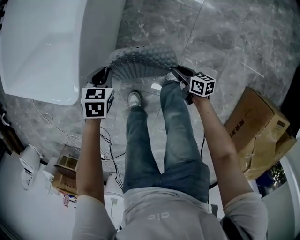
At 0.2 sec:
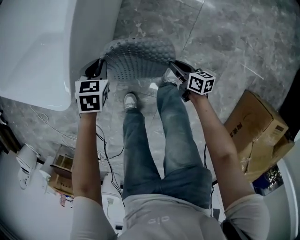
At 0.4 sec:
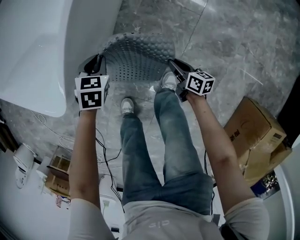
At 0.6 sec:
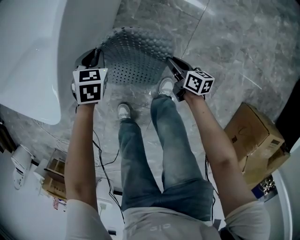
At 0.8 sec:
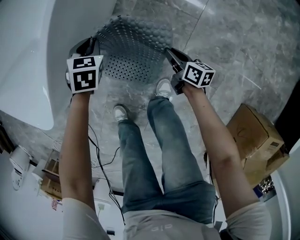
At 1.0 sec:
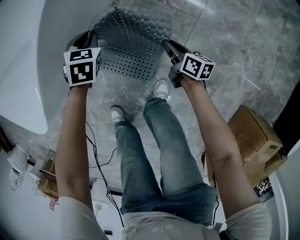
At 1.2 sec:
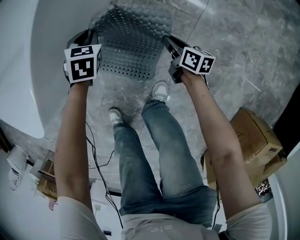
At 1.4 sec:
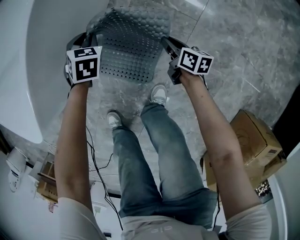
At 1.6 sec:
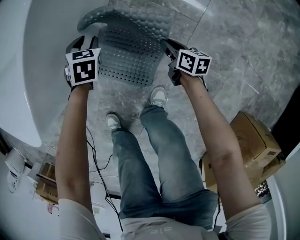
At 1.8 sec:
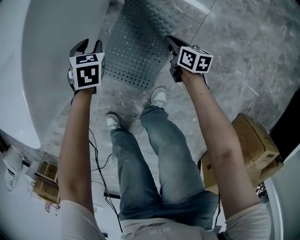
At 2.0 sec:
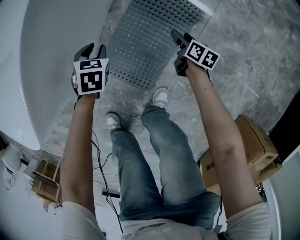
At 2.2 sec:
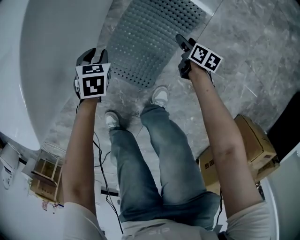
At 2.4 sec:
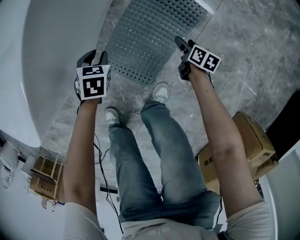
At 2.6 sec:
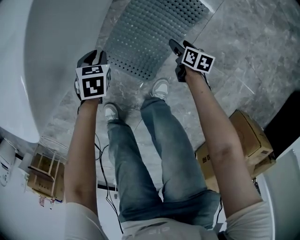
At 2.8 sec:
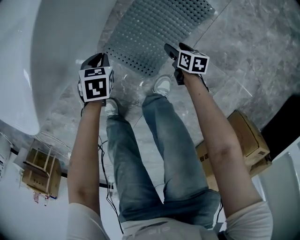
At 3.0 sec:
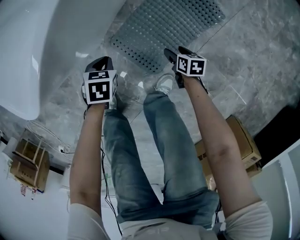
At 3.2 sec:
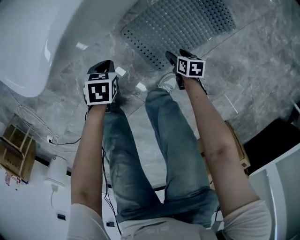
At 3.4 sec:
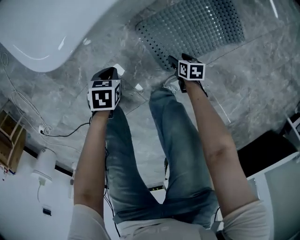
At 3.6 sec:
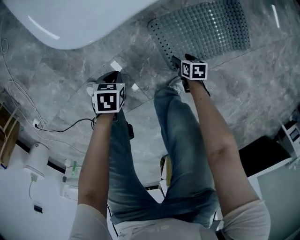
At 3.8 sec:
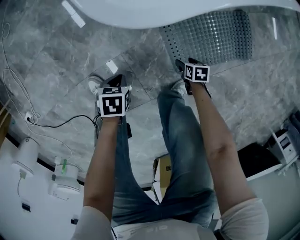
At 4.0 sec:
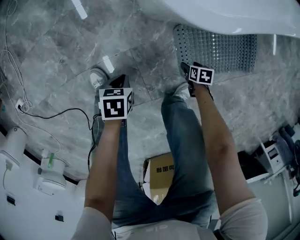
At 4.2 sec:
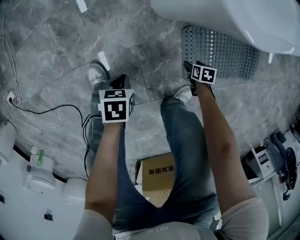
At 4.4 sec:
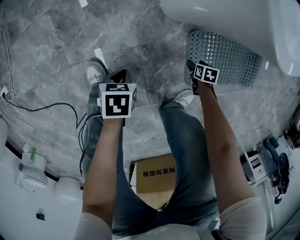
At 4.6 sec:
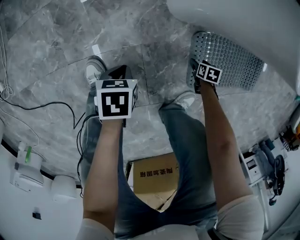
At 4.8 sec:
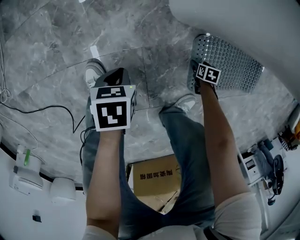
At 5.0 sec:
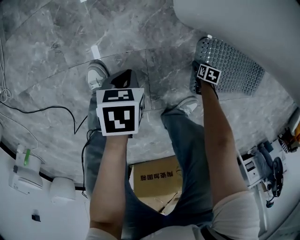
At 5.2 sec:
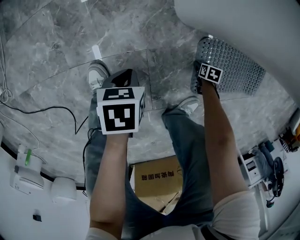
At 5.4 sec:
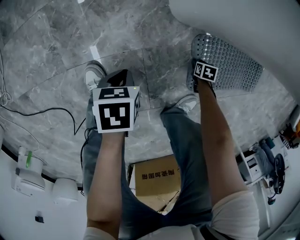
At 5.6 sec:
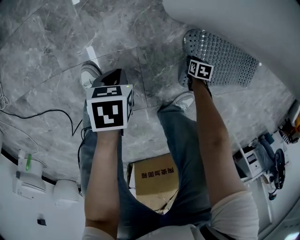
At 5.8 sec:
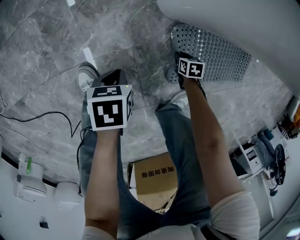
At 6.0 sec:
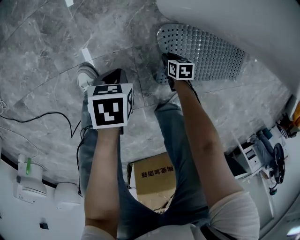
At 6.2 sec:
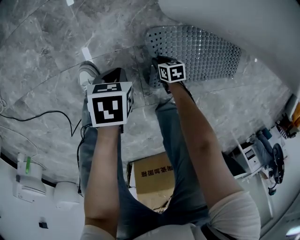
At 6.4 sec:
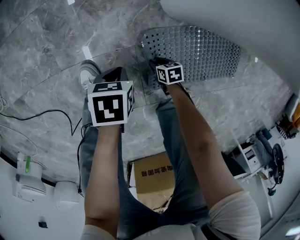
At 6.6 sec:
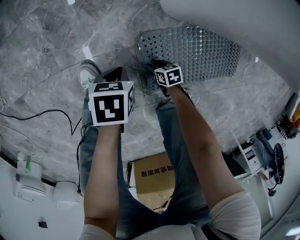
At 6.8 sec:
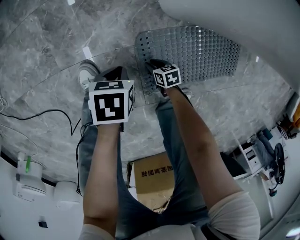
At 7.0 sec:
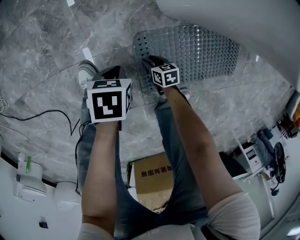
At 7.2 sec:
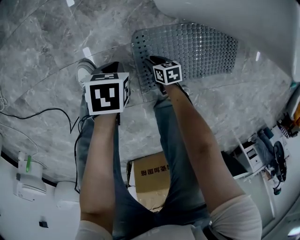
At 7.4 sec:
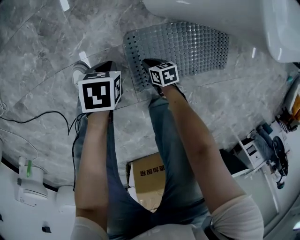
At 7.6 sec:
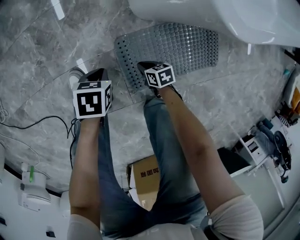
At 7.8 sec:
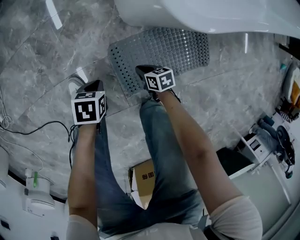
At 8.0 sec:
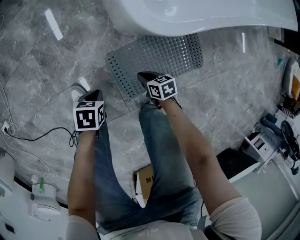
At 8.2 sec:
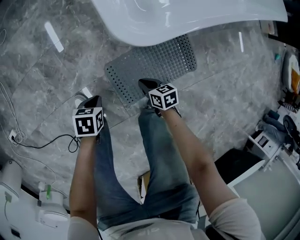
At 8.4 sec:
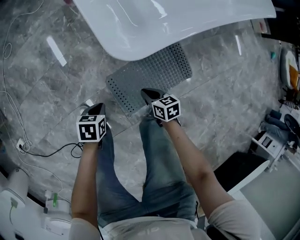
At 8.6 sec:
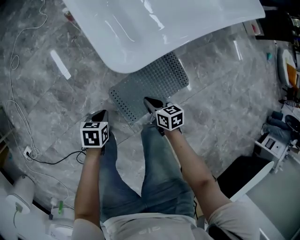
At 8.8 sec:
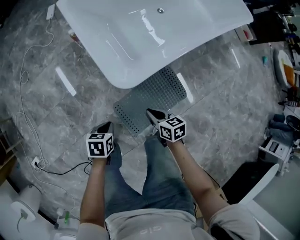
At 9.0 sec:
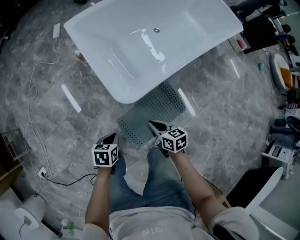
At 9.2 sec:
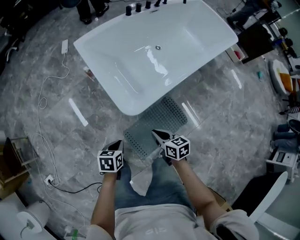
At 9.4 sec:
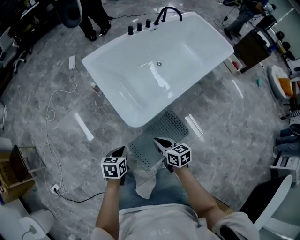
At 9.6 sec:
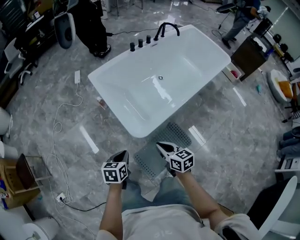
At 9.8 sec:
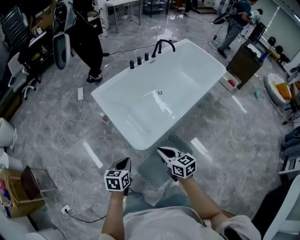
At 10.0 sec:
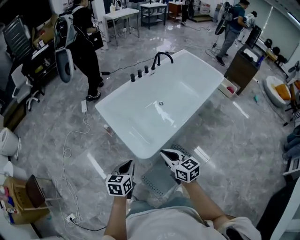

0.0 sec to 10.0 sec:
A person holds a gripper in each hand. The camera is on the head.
0.0 sec to 1.4 sec: The right gripper moves forward, downward and to the right, some 30 cm. Meanwhile the left gripper shifts roughly 30 cm downward, forward and to the right.
1.4 sec to 2.8 sec: The right gripper goes some 15 cm downward, to the left and backward, changes its angle by approximately 30 degrees, and opens its fingers. The left gripper is displaced backward and to the left by approximately 15 cm, and turns by approximately 20 degrees.
2.8 sec to 4.2 sec: The right gripper ends up about 35 cm from where it was, and rotates around the line of its fingers by some 40 degrees, counterclockwise from behind. Meanwhile the left gripper moves roughly 50 cm, and rolls counterclockwise, seen from behind, by approximately 50 degrees.
4.2 sec to 5.8 sec: The left gripper changes place by some 5 cm; the right gripper moves approximately 10 cm, and closes its fingers.
5.8 sec to 7.2 sec: The right gripper ends up about 15 cm from where it was, and turns by approximately 20 degrees.
7.2 sec to 8.6 sec: The right gripper goes roughly 50 cm upward, and turns by about 30 degrees; the left gripper goes some 30 cm upward, and rotates about 20 degrees.
8.6 sec to 10.0 sec: The grippers both shift upward by some 50 cm. The left gripper changes its angle by approximately 30 degrees, while the right gripper rotates approximately 40 degrees.

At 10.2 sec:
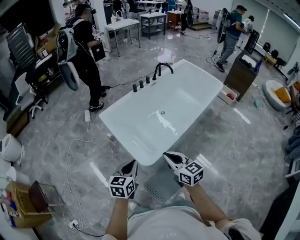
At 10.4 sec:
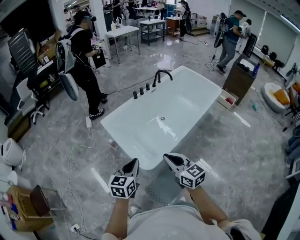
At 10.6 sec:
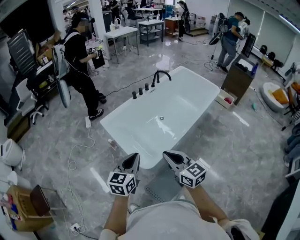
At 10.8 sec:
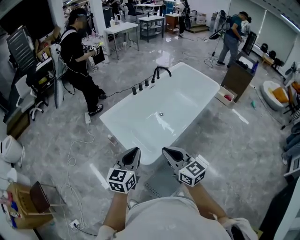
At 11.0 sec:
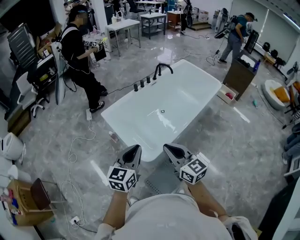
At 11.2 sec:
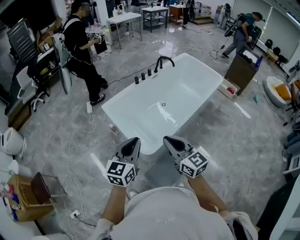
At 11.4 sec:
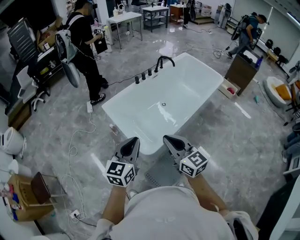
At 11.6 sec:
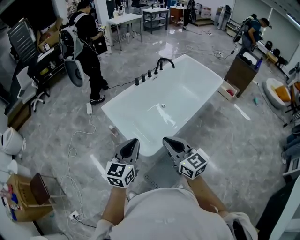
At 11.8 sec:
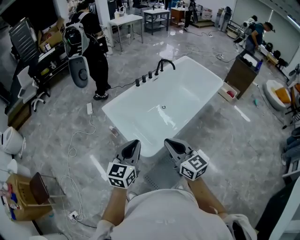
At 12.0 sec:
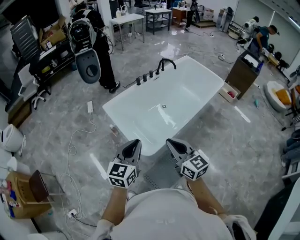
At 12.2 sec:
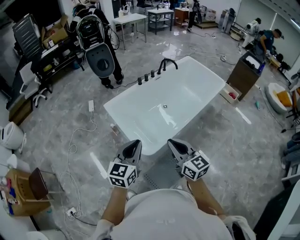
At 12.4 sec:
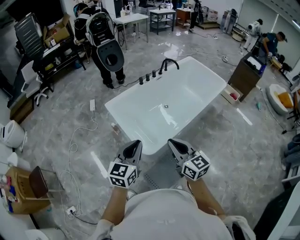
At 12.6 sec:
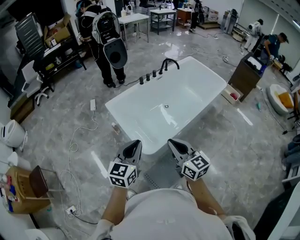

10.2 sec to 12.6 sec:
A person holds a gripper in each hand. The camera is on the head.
10.2 sec to 11.4 sec: The two grippers go roughly 10 cm upward.
11.4 sec to 12.6 sec: The grippers move only a little.

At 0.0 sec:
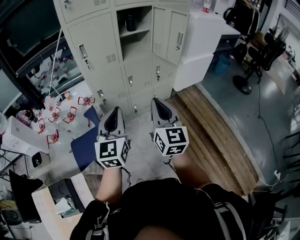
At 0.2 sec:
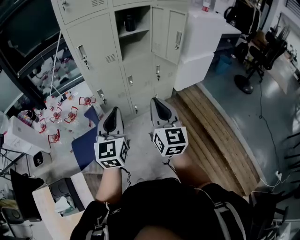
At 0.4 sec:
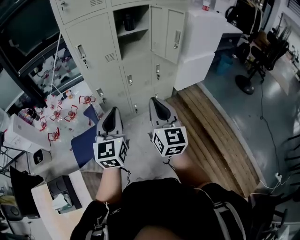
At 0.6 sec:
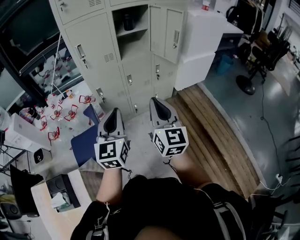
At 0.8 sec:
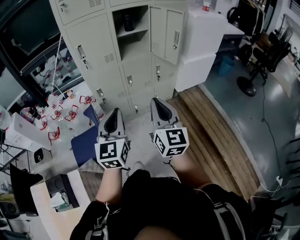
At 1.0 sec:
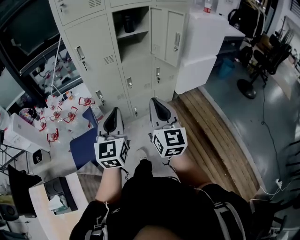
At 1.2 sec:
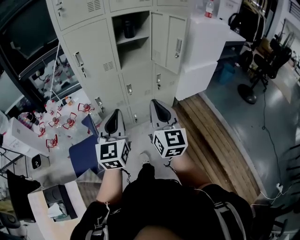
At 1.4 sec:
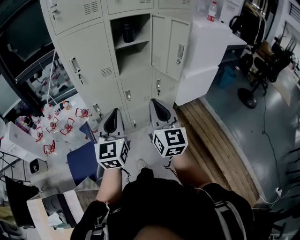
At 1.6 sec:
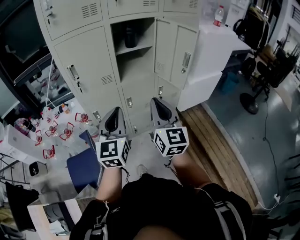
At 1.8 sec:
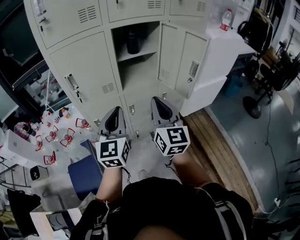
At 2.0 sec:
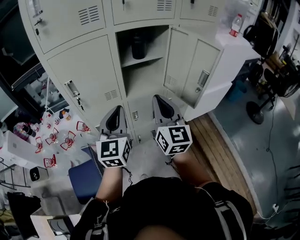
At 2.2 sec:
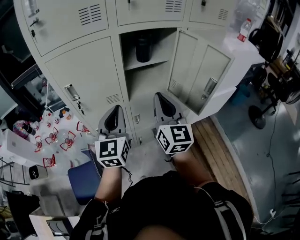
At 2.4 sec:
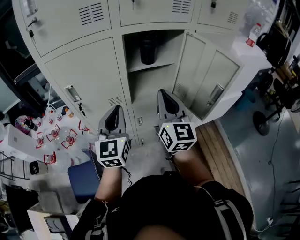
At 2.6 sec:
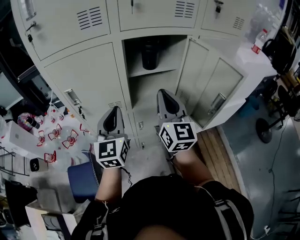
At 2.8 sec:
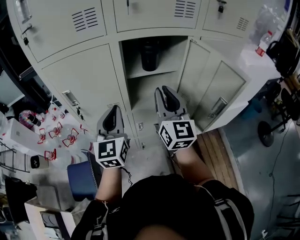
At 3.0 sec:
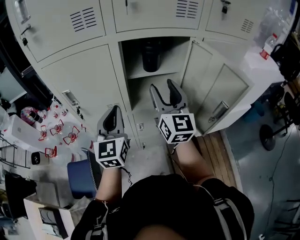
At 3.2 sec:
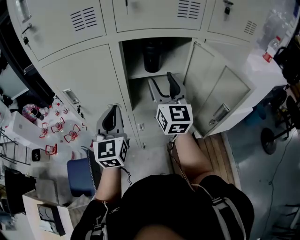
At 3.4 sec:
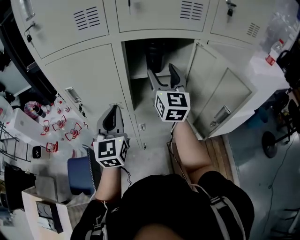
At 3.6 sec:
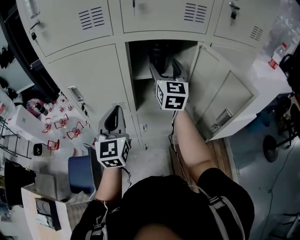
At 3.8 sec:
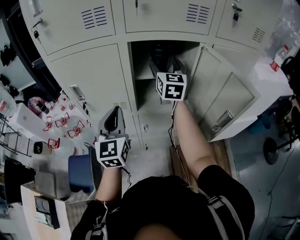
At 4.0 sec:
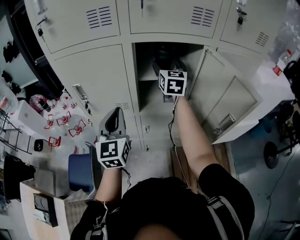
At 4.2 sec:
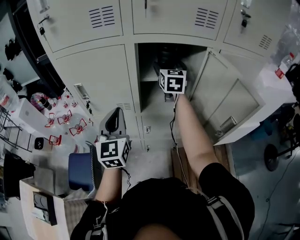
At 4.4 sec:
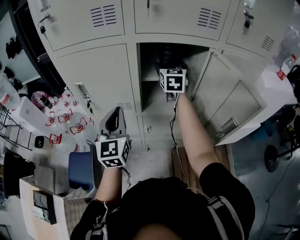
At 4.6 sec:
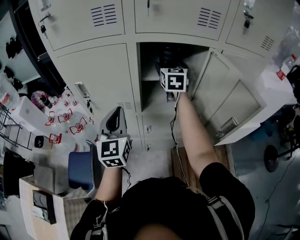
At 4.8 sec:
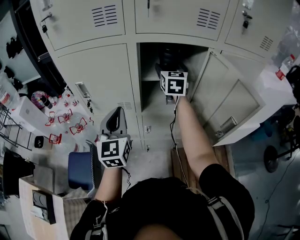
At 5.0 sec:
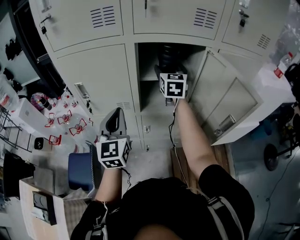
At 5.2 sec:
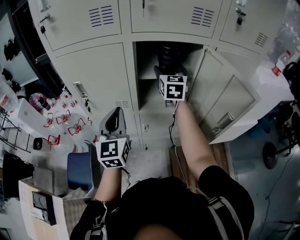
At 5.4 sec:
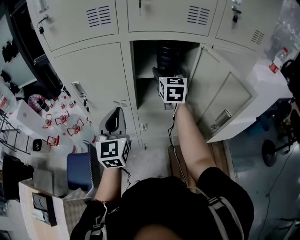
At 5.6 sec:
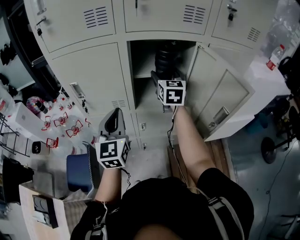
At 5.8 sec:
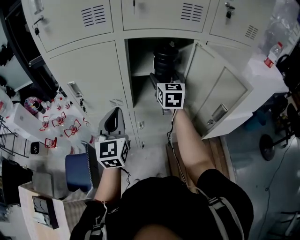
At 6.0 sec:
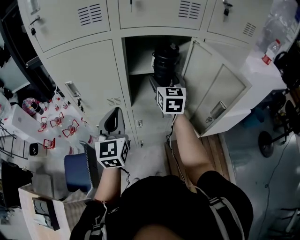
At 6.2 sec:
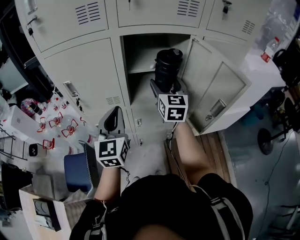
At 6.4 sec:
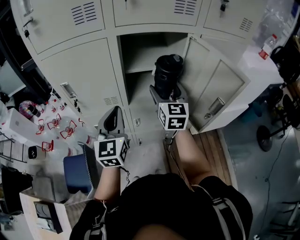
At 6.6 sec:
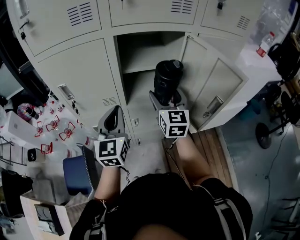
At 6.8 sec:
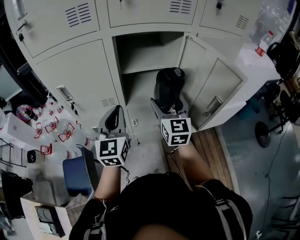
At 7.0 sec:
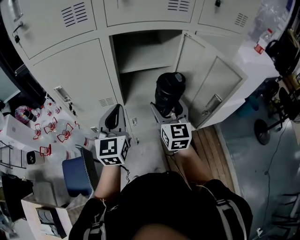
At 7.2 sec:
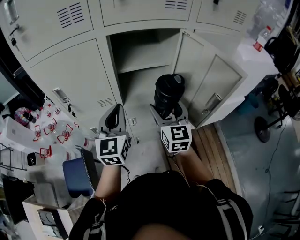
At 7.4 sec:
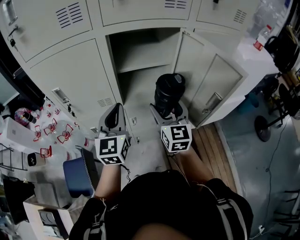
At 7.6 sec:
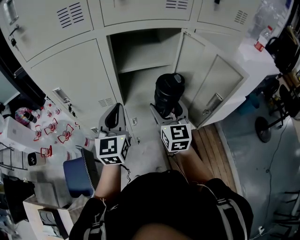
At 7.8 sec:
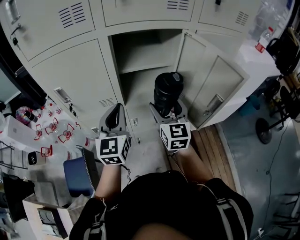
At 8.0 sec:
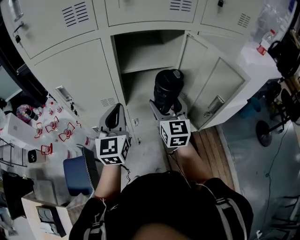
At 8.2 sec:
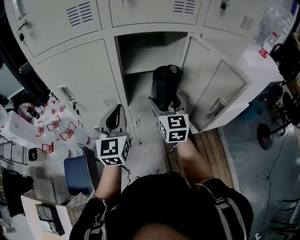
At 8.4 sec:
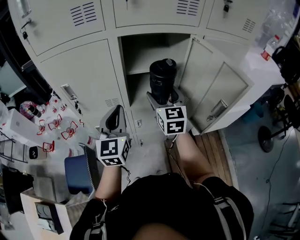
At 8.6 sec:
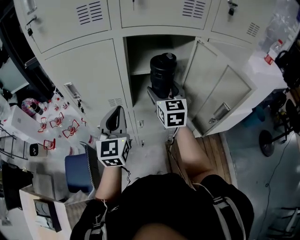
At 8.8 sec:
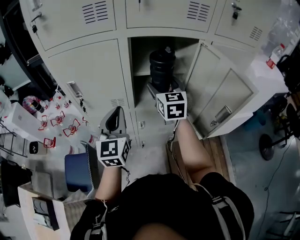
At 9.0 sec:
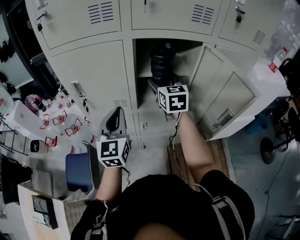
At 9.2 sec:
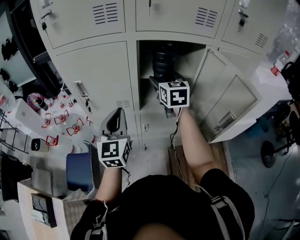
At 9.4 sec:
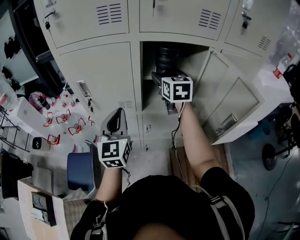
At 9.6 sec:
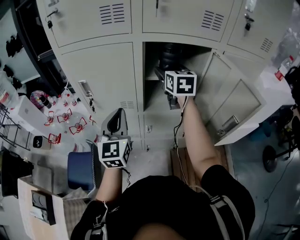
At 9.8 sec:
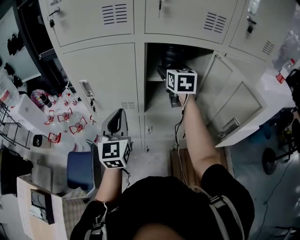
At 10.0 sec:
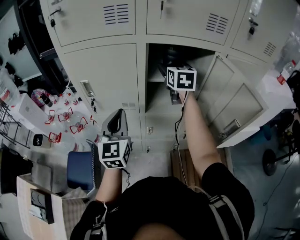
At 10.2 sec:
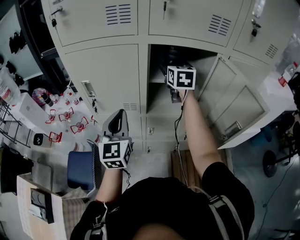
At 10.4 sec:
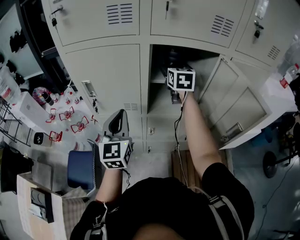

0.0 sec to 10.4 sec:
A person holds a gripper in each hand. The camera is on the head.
0.0 sec to 1.4 sec: Both grippers travel together forward and to the right, approximately 15 cm.
1.4 sec to 3.0 sec: The grippers both shift forward by some 40 cm. The right gripper opens up.
3.0 sec to 4.4 sec: The right gripper moves forward, about 20 cm, turns by roughly 20 degrees, and opens its fingers.
4.4 sec to 6.0 sec: The right gripper moves backward, about 10 cm.
6.0 sec to 7.4 sec: The right gripper is displaced backward and downward by roughly 15 cm.
7.4 sec to 9.0 sec: The left gripper goes some 5 cm to the left. Meanwhile the right gripper is displaced forward, to the left and upward by about 15 cm.
9.0 sec to 10.4 sec: The right gripper goes approximately 10 cm forward.
